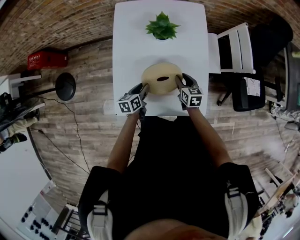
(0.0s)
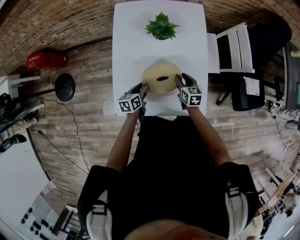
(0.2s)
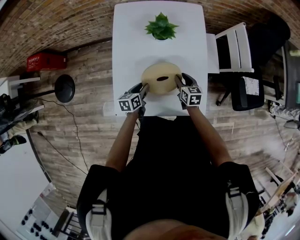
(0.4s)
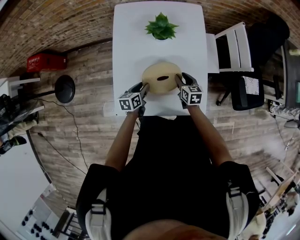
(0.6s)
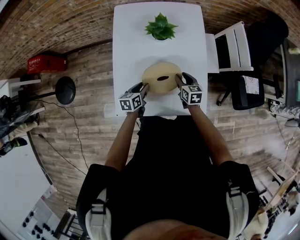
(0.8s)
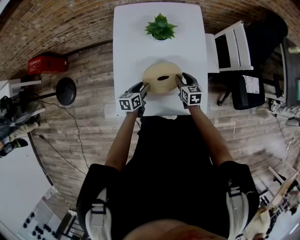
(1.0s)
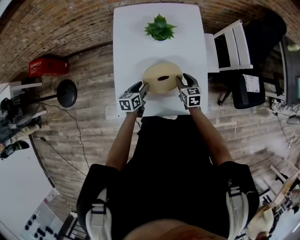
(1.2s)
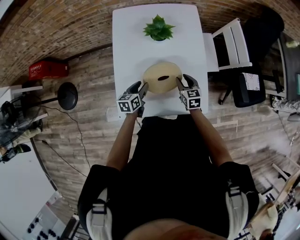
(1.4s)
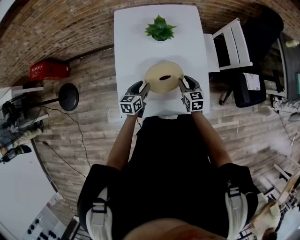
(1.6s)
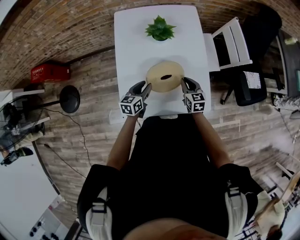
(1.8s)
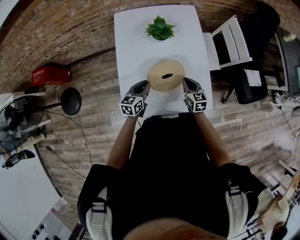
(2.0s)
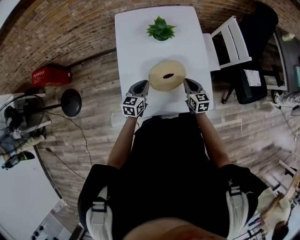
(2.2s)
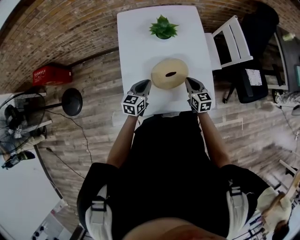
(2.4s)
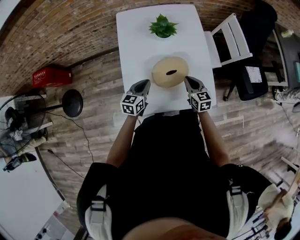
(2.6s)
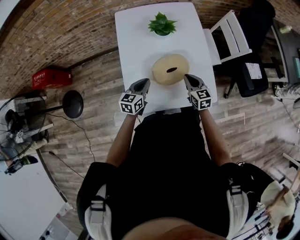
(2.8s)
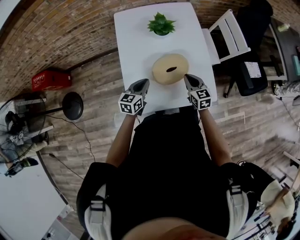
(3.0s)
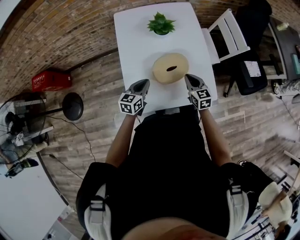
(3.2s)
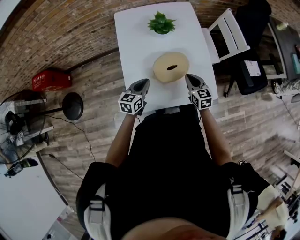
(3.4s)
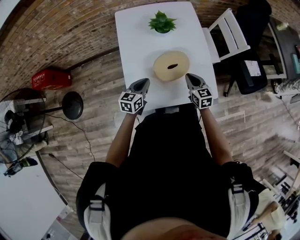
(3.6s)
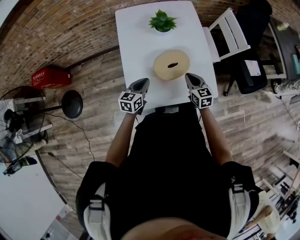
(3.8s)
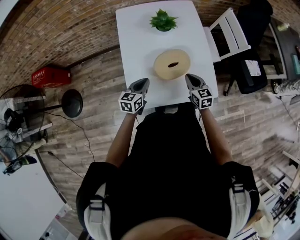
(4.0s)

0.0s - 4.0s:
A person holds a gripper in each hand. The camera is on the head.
0.0s - 1.4s: The grippers stay close to where they were, moving slightly.
1.4s - 2.6s: The right gripper heads backward, covering about 5 cm, and closes up; the left gripper goes some 5 cm upward, turns by some 20 degrees, and closes up.
2.6s - 4.0s: The grippers make only small movements.

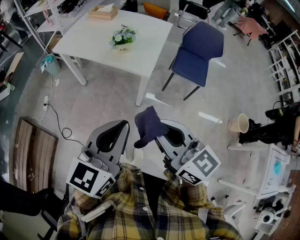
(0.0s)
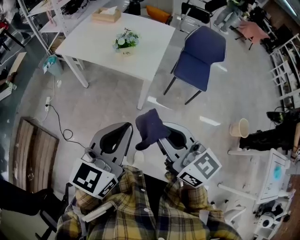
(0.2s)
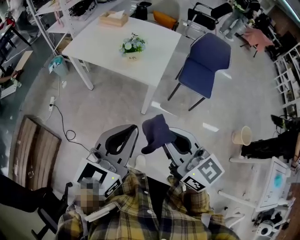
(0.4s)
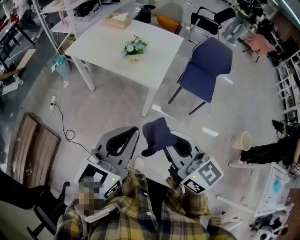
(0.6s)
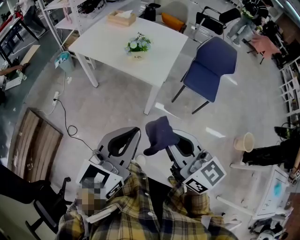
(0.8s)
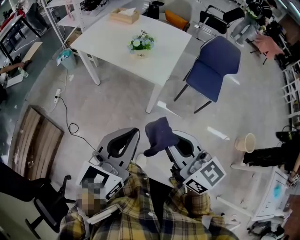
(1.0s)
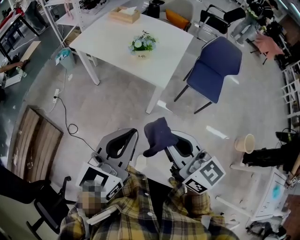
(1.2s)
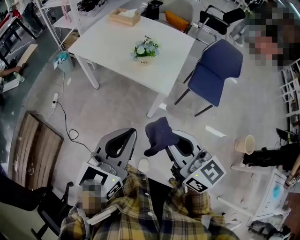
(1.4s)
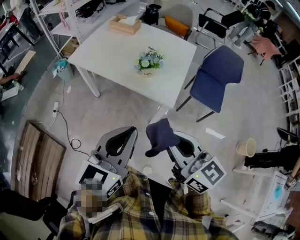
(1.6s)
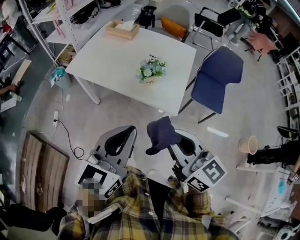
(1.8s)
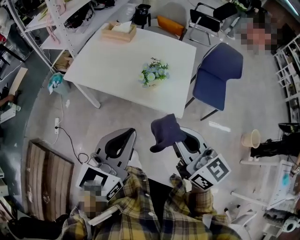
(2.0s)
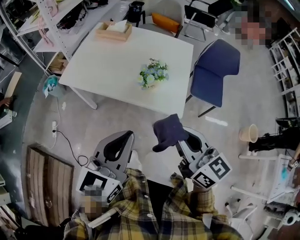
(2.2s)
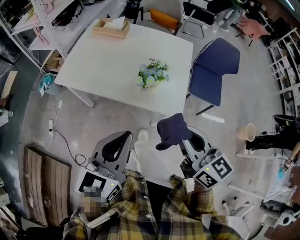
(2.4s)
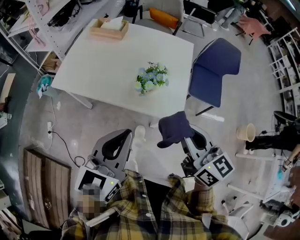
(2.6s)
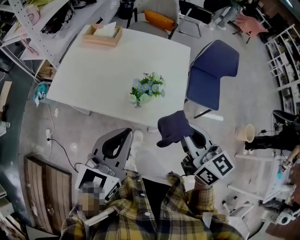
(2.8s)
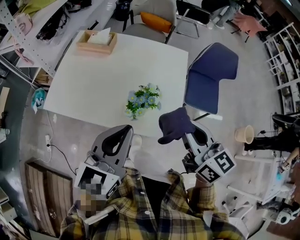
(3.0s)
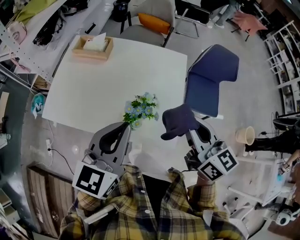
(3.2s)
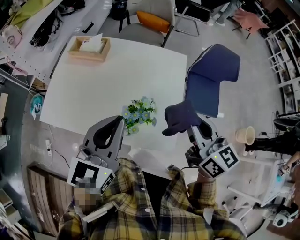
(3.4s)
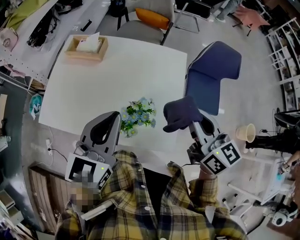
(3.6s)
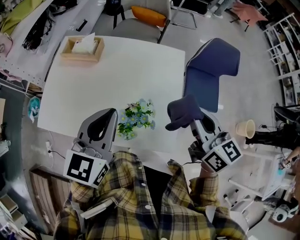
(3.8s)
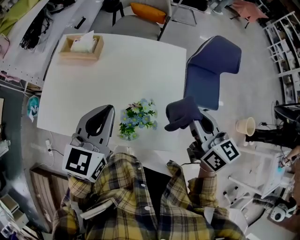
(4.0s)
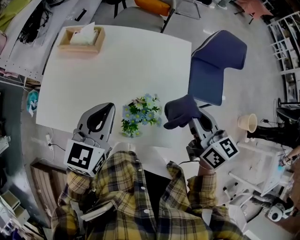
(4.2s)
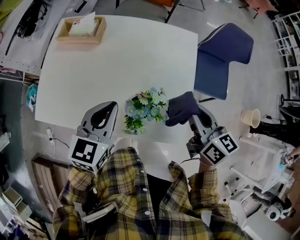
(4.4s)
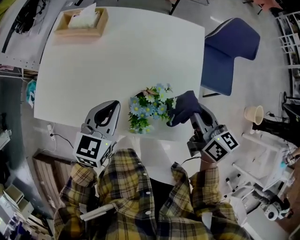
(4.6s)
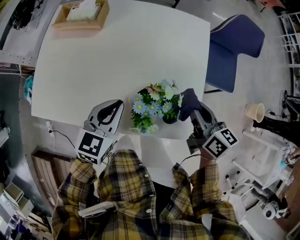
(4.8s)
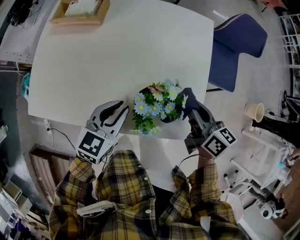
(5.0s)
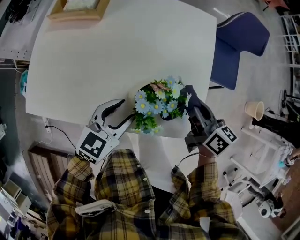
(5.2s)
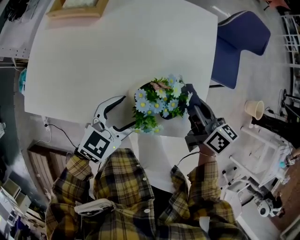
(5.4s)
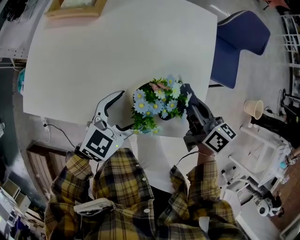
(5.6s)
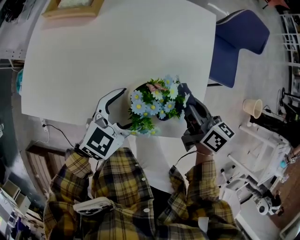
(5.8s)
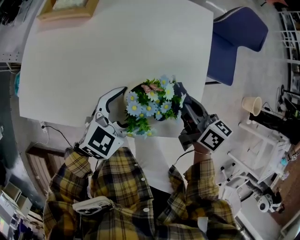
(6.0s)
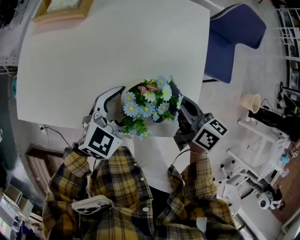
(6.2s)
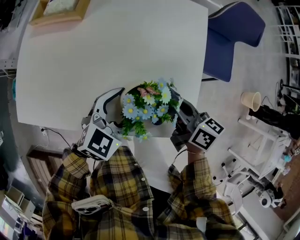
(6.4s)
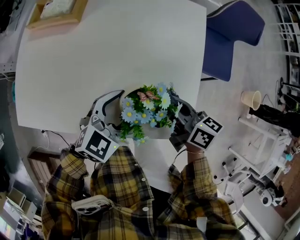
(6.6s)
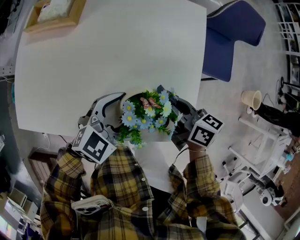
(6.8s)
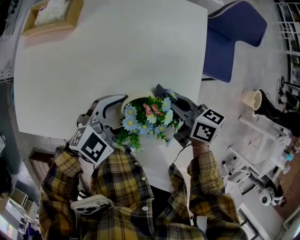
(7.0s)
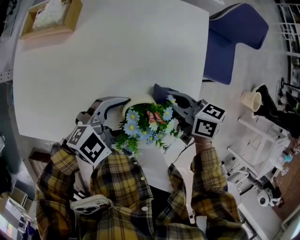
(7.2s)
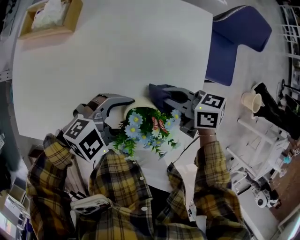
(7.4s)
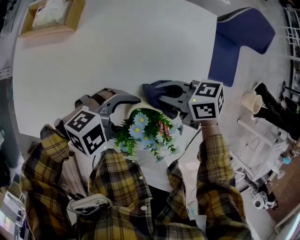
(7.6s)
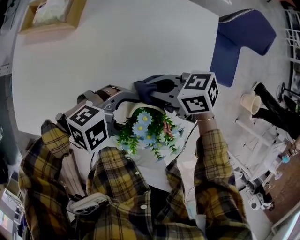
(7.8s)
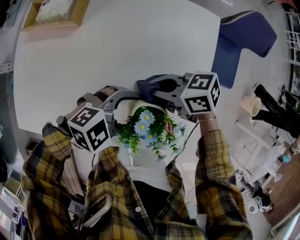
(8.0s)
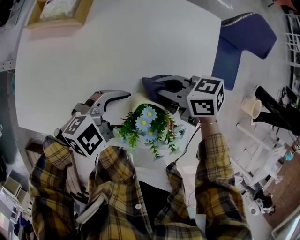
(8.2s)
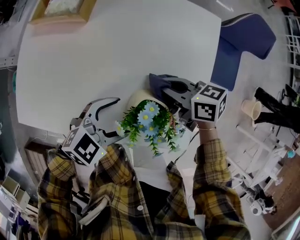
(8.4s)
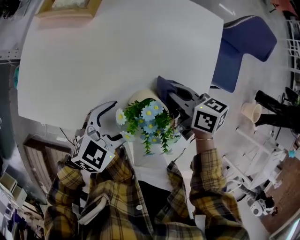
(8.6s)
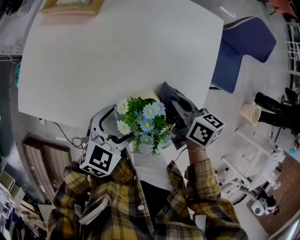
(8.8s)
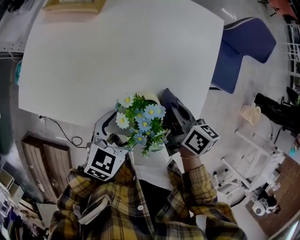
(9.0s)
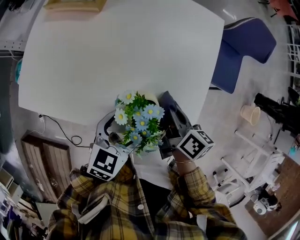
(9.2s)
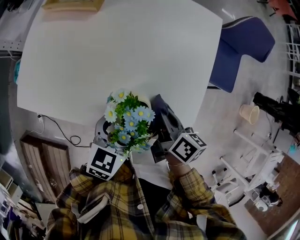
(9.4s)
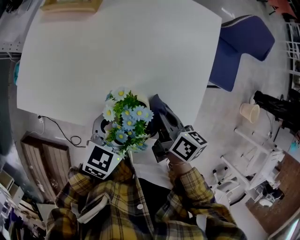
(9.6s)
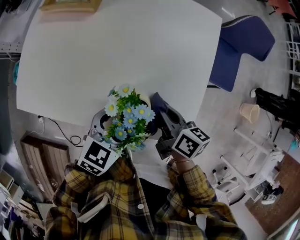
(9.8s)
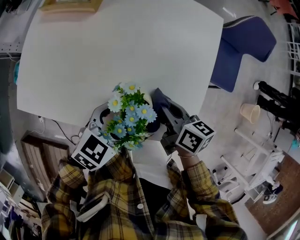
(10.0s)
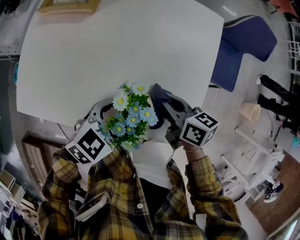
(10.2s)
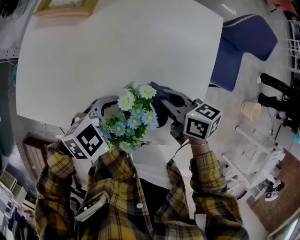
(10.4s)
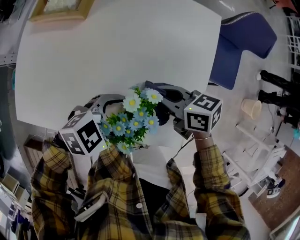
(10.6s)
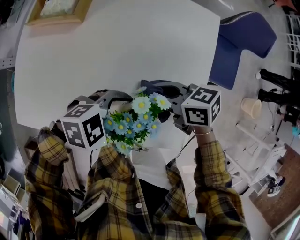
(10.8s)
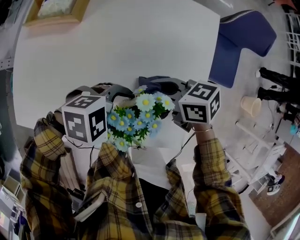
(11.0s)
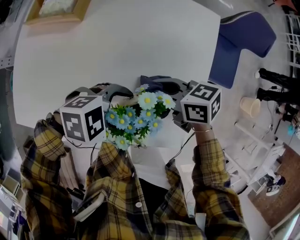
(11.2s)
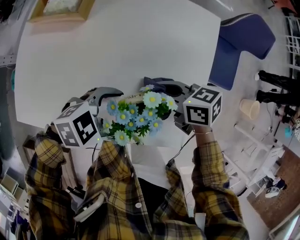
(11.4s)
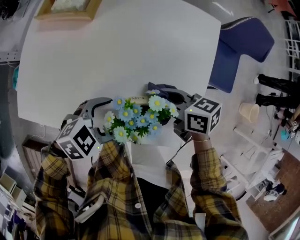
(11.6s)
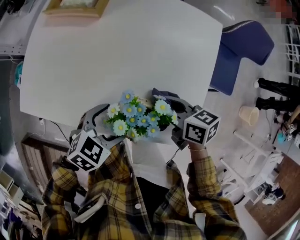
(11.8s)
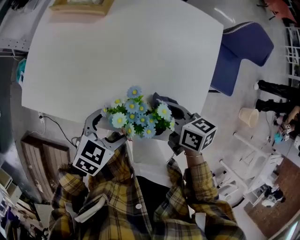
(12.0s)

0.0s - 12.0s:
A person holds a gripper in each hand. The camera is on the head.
0.0s - 1.6s: Both grippers move forward and to the left, some 15 cm.
1.6s - 3.0s: The grippers both shift forward by some 25 cm. The right gripper swivels approximately 20 degrees.
3.0s - 4.4s: Both grippers travel together forward and downward, roughly 20 cm.
4.4s - 6.0s: The left gripper moves downward and to the right, roughly 15 cm, changes its angle by about 30 degrees, and opens up. The right gripper travels downward by approximately 15 cm.
6.0s - 7.6s: The right gripper ends up about 10 cm from where it was, and turns by approximately 50 degrees. Meanwhile the left gripper changes its angle by some 50 degrees.
7.6s - 9.0s: The right gripper changes place by about 5 cm, and swivels roughly 50 degrees, while the left gripper changes place by roughly 10 cm, and changes its angle by roughly 60 degrees.
9.0s - 10.4s: The right gripper ends up about 5 cm from where it was, and rotates about 30 degrees. Meanwhile the left gripper swivels some 30 degrees.
10.4s - 12.0s: The left gripper moves roughly 5 cm, and changes its angle by approximately 30 degrees.

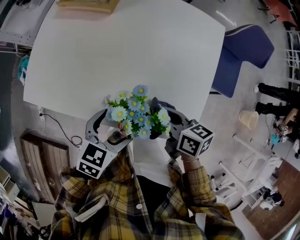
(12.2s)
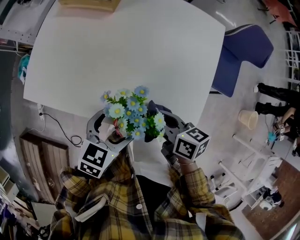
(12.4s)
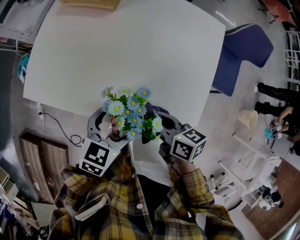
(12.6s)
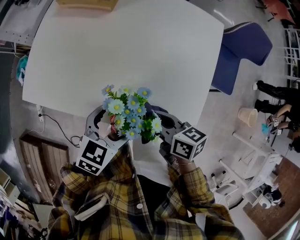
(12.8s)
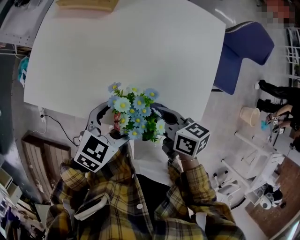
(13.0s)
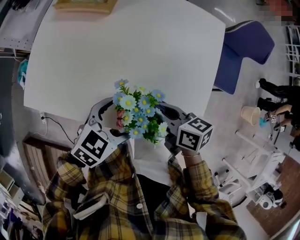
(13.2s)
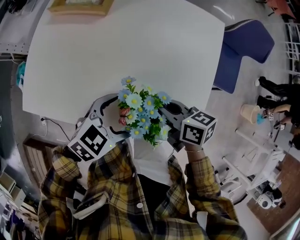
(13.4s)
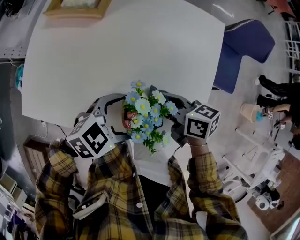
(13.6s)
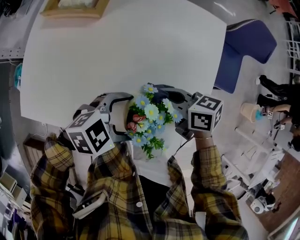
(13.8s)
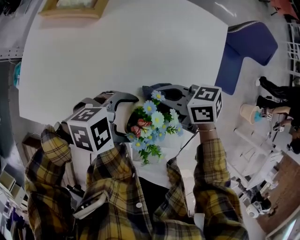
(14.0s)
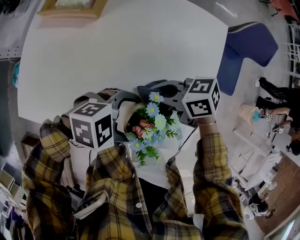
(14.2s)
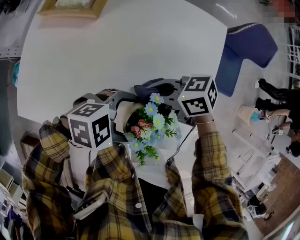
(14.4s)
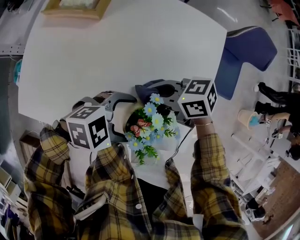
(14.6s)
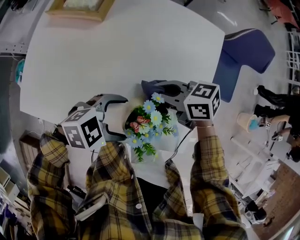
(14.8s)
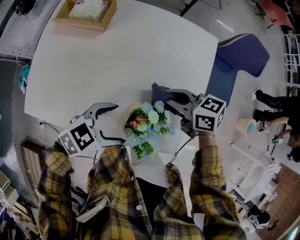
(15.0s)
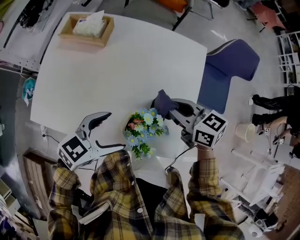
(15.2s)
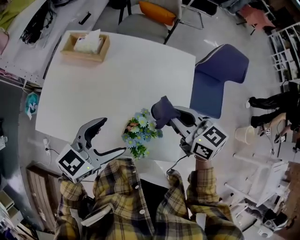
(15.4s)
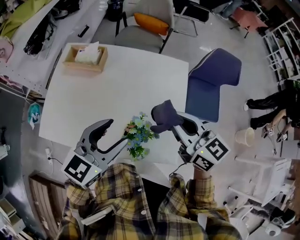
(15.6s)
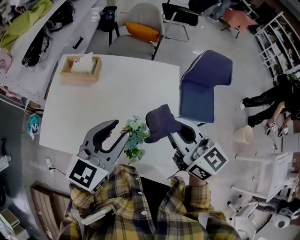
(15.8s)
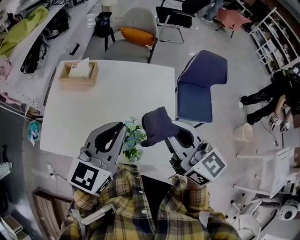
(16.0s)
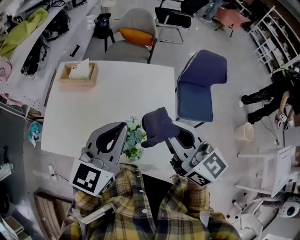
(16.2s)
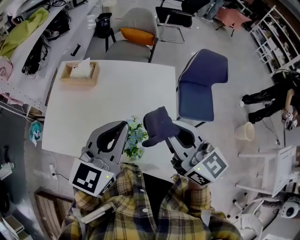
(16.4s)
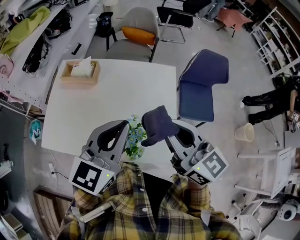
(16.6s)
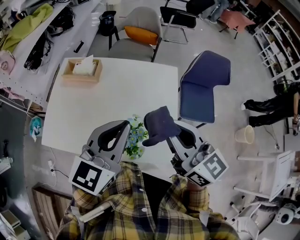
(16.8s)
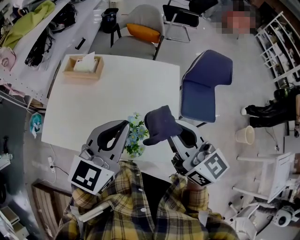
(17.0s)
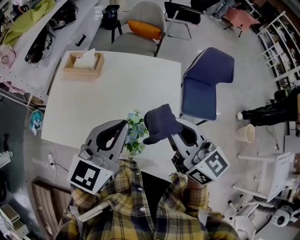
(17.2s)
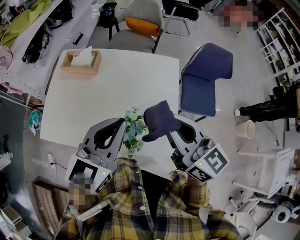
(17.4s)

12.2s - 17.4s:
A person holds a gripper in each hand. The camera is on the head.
12.2s - 14.0s: The left gripper changes place by approximately 5 cm, and swivels approximately 60 degrees, while the right gripper ends up roughly 10 cm from where it was, and turns by some 30 degrees.
14.0s - 15.6s: Both grippers travel together upward, about 20 cm. The right gripper turns by approximately 50 degrees; the left gripper rotates some 60 degrees, and closes its fingers.
15.6s - 17.4s: Both grippers move upward, about 10 cm. The left gripper closes its fingers.

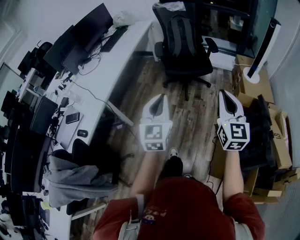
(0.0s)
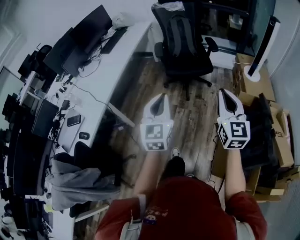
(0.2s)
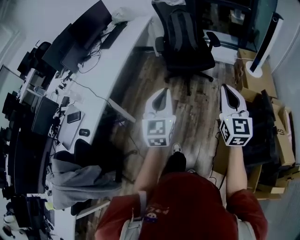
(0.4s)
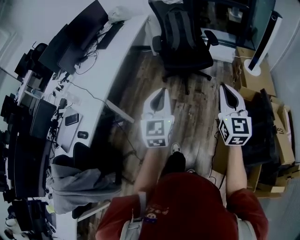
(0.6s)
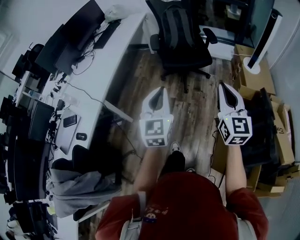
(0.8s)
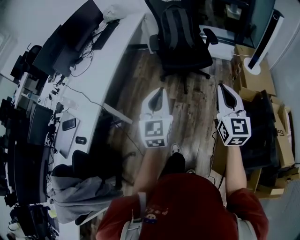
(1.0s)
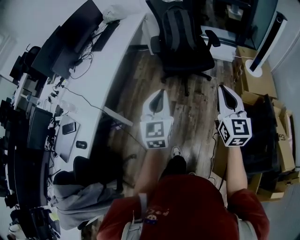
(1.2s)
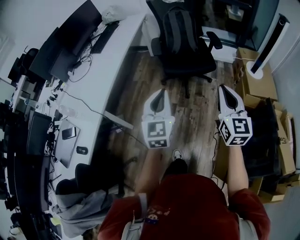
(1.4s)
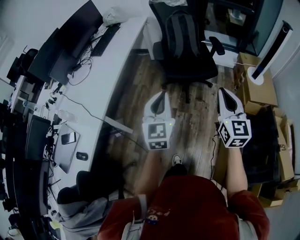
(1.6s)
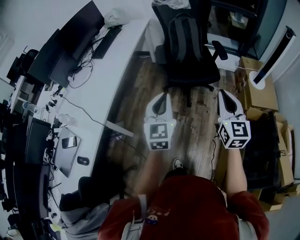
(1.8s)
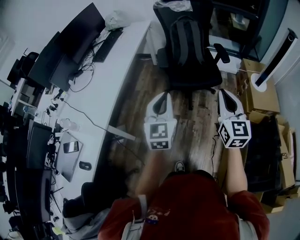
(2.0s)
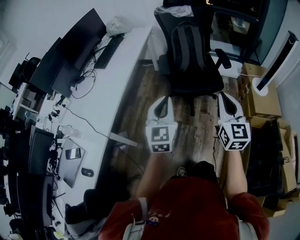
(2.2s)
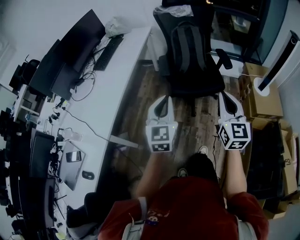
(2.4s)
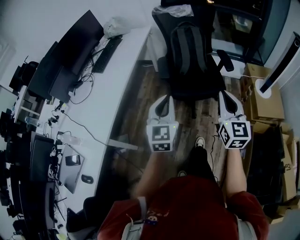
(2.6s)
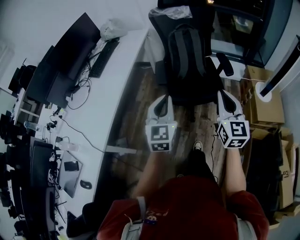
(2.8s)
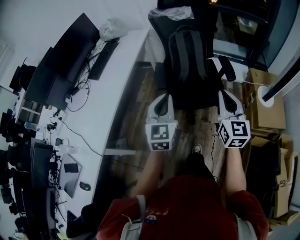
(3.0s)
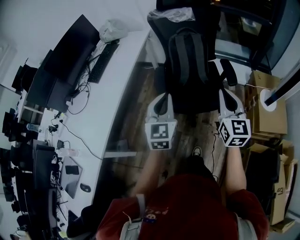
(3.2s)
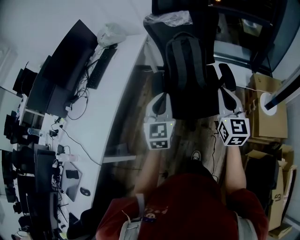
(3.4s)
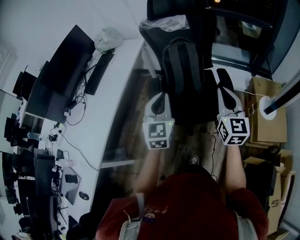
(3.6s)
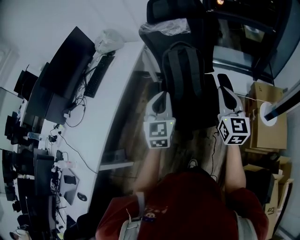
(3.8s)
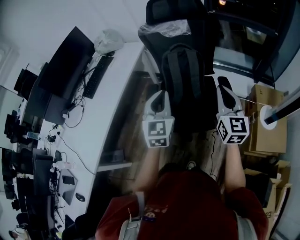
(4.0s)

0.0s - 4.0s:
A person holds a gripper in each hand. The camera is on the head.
0.0s - 1.4s: Both grippers travel together forward, about 15 cm.
1.4s - 2.6s: Both grippers move forward, some 20 cm.
2.6s - 4.0s: Both grippers travel together forward and to the right, some 40 cm.
